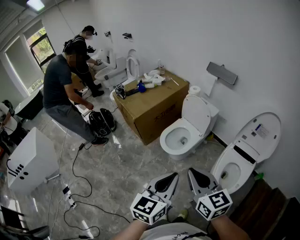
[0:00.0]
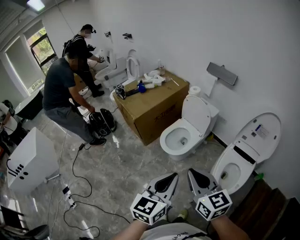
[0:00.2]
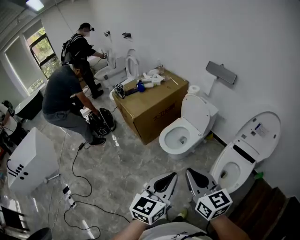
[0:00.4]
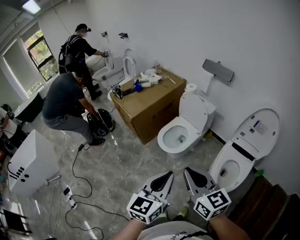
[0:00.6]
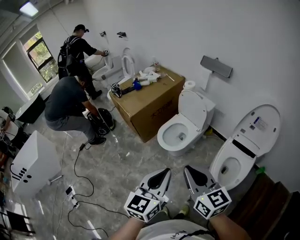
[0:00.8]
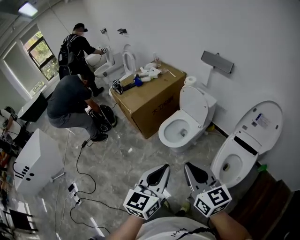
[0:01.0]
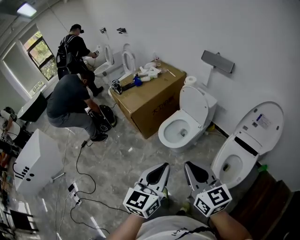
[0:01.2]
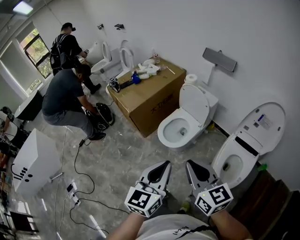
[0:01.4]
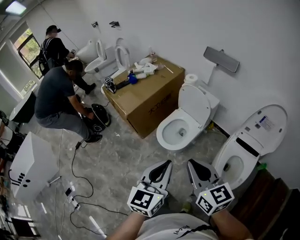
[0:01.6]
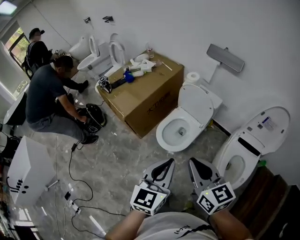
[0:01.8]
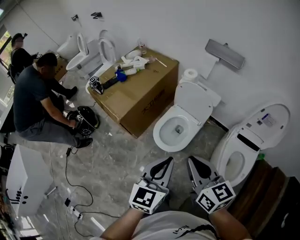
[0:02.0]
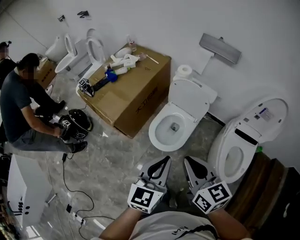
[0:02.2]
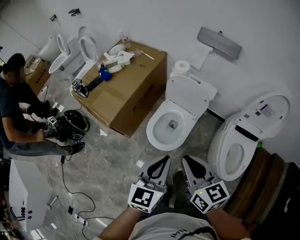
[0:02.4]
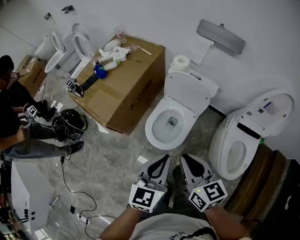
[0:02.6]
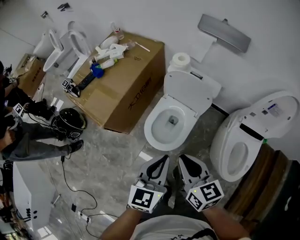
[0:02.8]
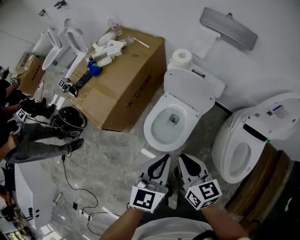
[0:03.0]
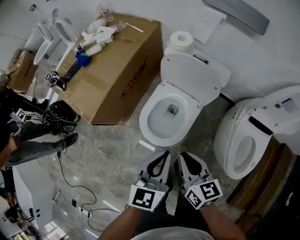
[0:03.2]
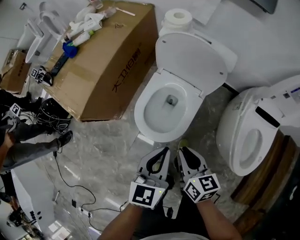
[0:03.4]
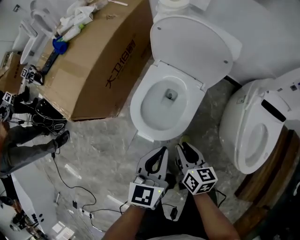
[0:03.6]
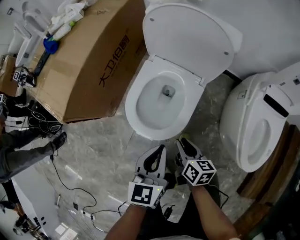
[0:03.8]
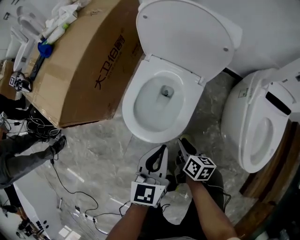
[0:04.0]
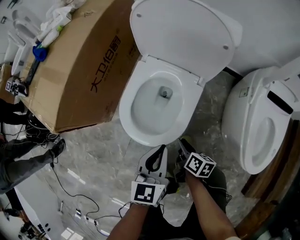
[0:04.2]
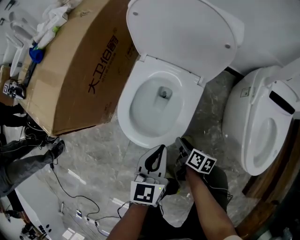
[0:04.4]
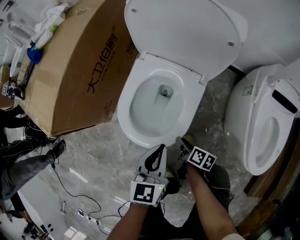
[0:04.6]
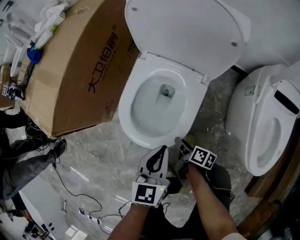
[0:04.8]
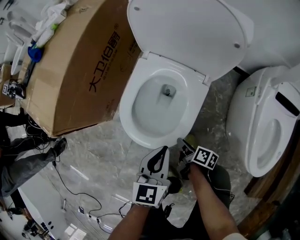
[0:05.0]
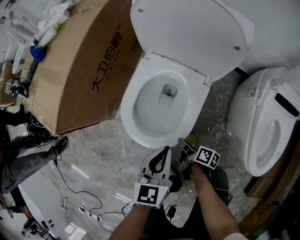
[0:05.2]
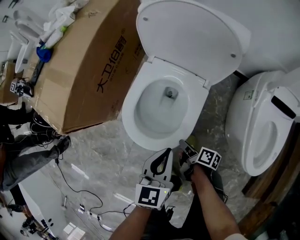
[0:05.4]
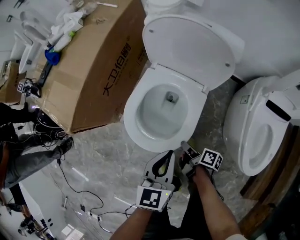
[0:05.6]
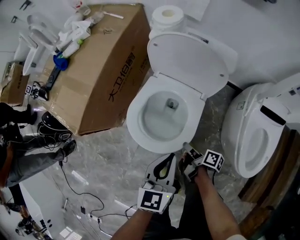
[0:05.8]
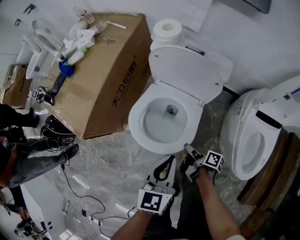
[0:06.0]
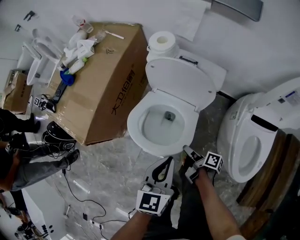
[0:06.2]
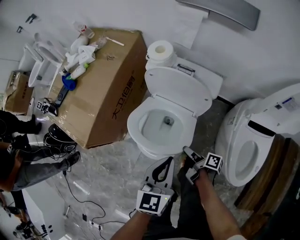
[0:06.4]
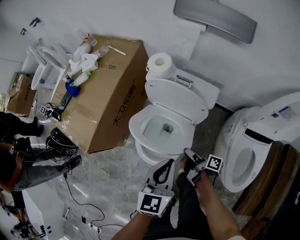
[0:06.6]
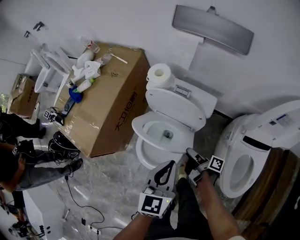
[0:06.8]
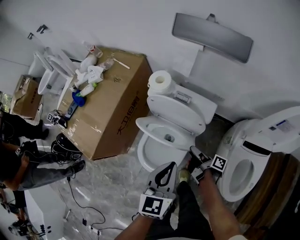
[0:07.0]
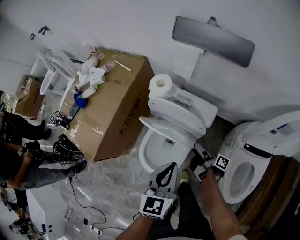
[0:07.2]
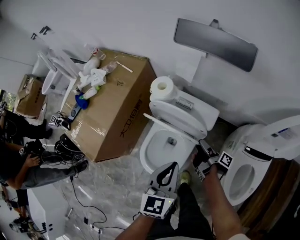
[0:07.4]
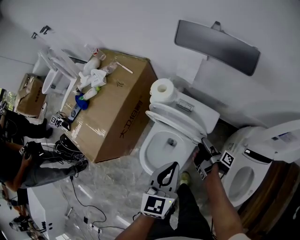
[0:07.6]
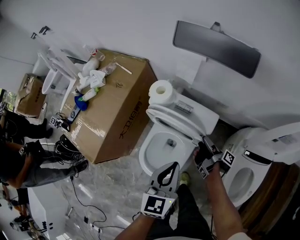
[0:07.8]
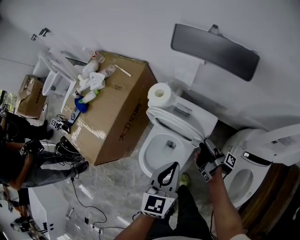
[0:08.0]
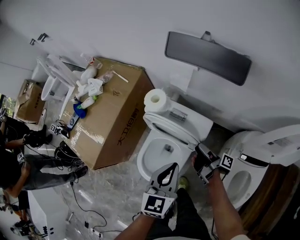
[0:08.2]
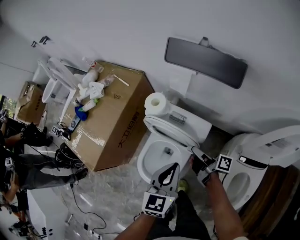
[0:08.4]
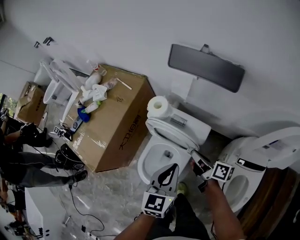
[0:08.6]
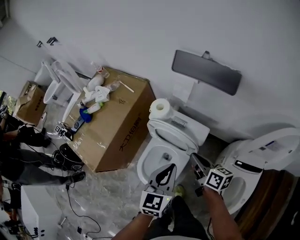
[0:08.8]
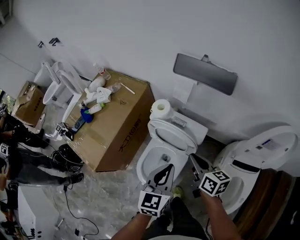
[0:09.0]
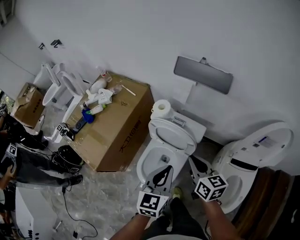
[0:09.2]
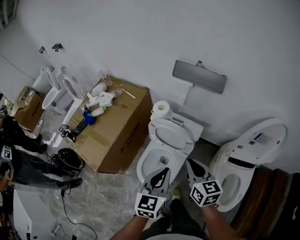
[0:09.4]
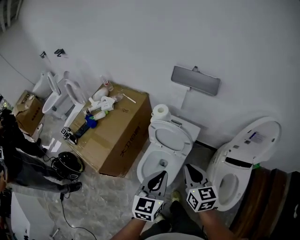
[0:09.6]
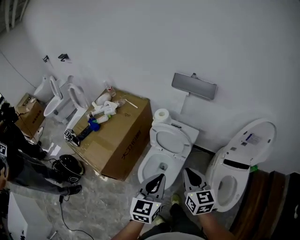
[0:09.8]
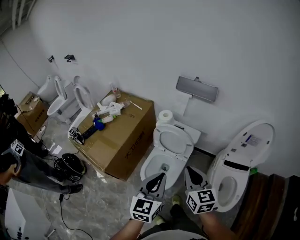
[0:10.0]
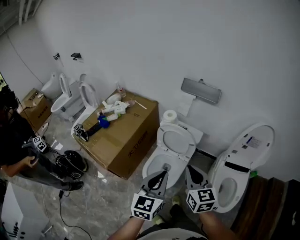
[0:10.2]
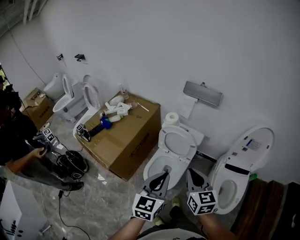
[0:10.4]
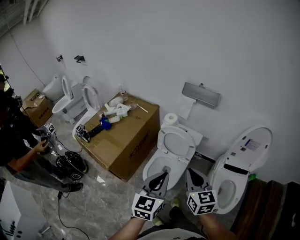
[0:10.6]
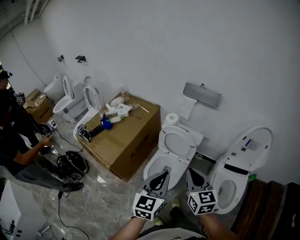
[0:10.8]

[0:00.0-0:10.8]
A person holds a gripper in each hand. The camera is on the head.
0:00.0 to 0:01.6: The grippers both shift forward by some 10 cm.
0:01.6 to 0:03.0: Both grippers travel together forward and downward, roughly 35 cm. The right gripper changes its angle by approximately 20 degrees.
0:03.0 to 0:04.6: Both grippers move downward, some 50 cm. The right gripper rotates around the line of its fingers by some 60 degrees, clockwise from behind, and opens its fingers.
0:04.6 to 0:06.2: The grippers both shift upward by some 20 cm. The right gripper rotates approximately 20 degrees.
0:06.2 to 0:07.8: The right gripper goes roughly 30 cm forward, to the right and upward, changes its angle by approximately 30 degrees, and opens; the left gripper travels forward, upward and to the right by about 20 cm.
0:07.8 to 0:09.2: The left gripper moves upward and backward, some 10 cm, while the right gripper moves upward, approximately 25 cm, rolls counterclockwise, seen from behind, by about 90 degrees, and closes.
0:09.2 to 0:10.8: The grippers both shift backward and upward by about 25 cm. The right gripper rotates about 20 degrees.

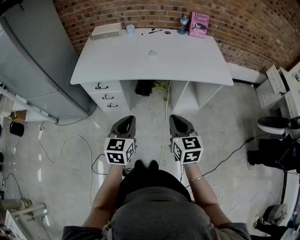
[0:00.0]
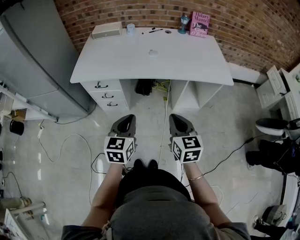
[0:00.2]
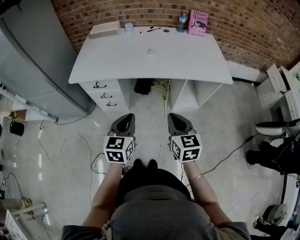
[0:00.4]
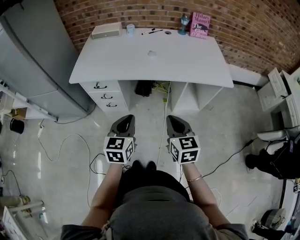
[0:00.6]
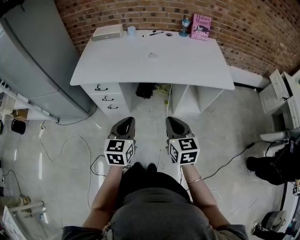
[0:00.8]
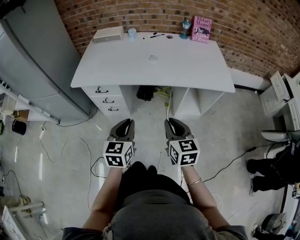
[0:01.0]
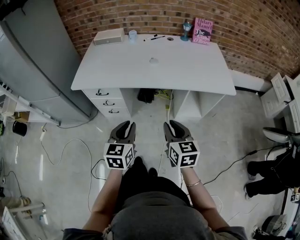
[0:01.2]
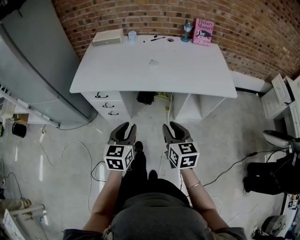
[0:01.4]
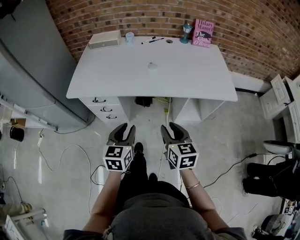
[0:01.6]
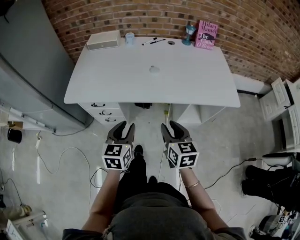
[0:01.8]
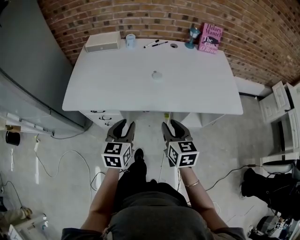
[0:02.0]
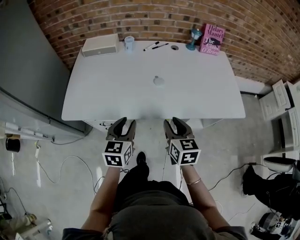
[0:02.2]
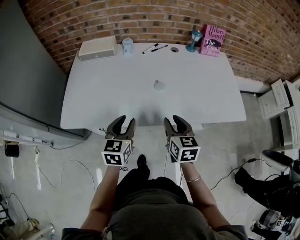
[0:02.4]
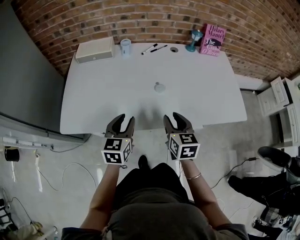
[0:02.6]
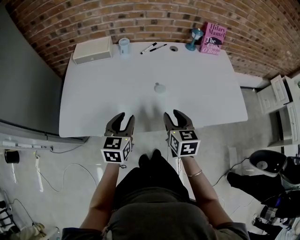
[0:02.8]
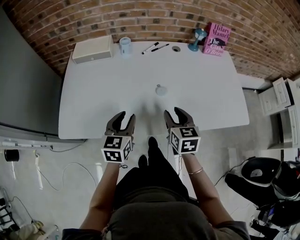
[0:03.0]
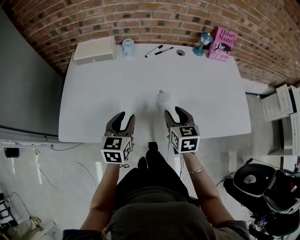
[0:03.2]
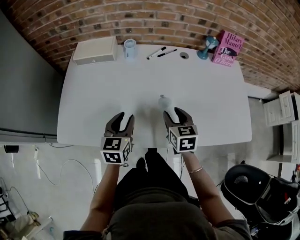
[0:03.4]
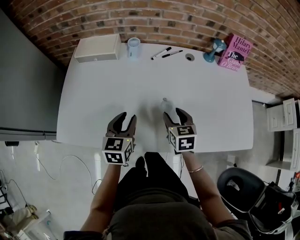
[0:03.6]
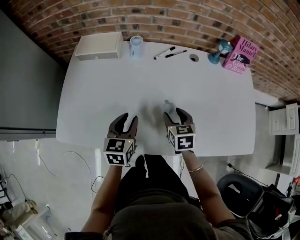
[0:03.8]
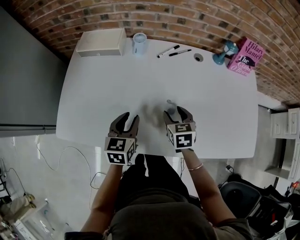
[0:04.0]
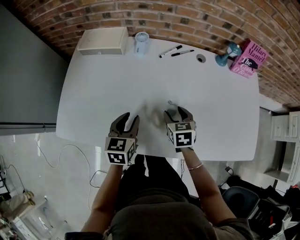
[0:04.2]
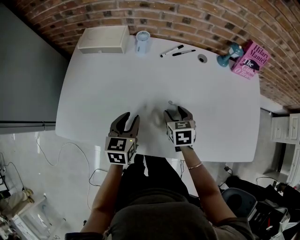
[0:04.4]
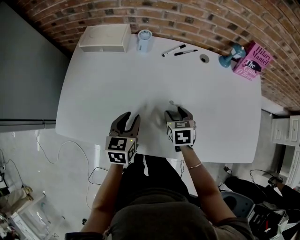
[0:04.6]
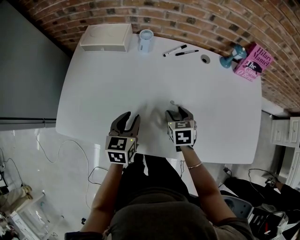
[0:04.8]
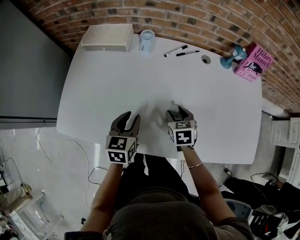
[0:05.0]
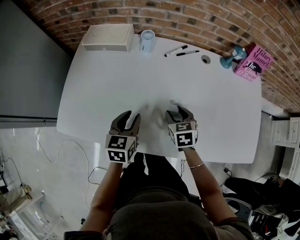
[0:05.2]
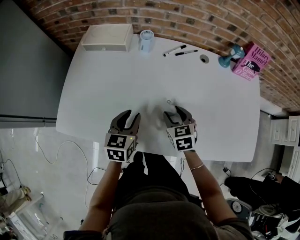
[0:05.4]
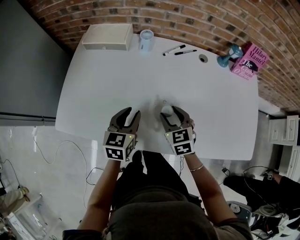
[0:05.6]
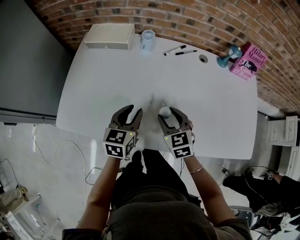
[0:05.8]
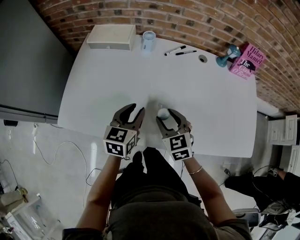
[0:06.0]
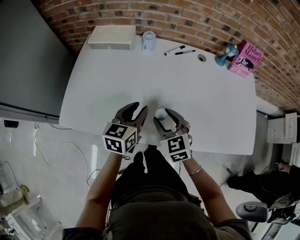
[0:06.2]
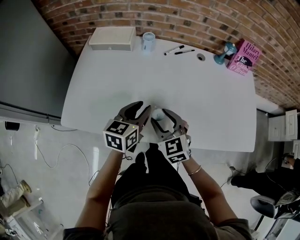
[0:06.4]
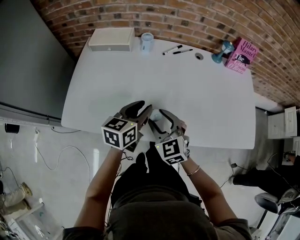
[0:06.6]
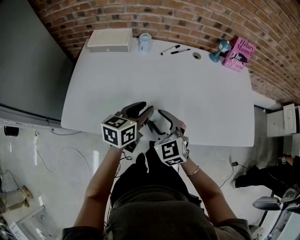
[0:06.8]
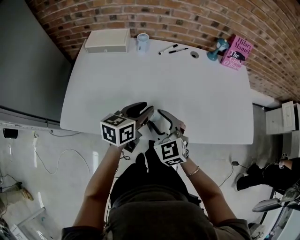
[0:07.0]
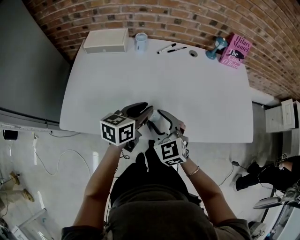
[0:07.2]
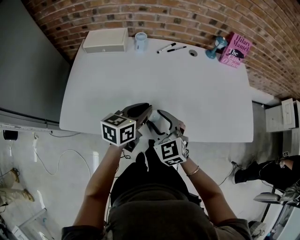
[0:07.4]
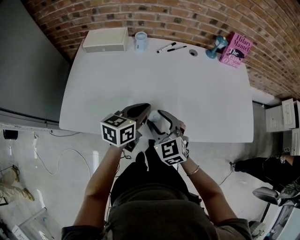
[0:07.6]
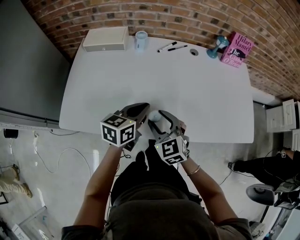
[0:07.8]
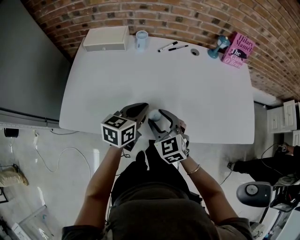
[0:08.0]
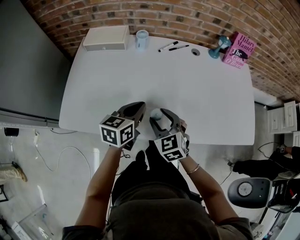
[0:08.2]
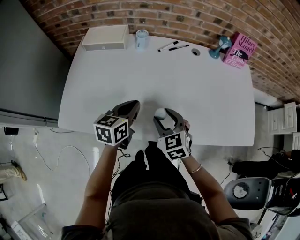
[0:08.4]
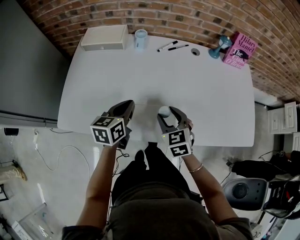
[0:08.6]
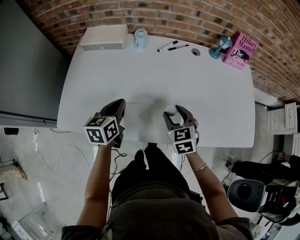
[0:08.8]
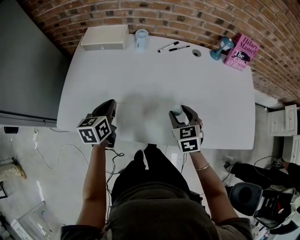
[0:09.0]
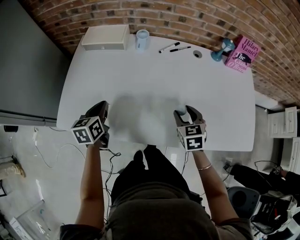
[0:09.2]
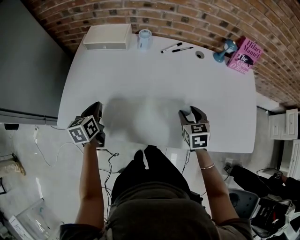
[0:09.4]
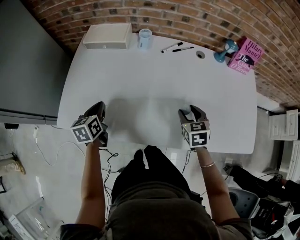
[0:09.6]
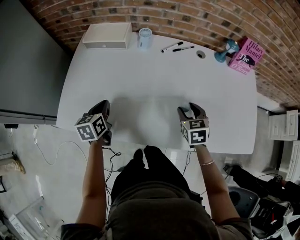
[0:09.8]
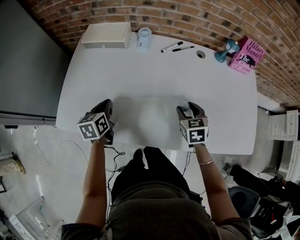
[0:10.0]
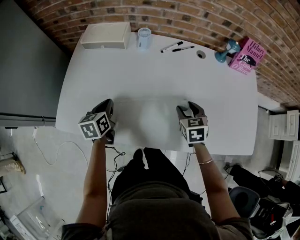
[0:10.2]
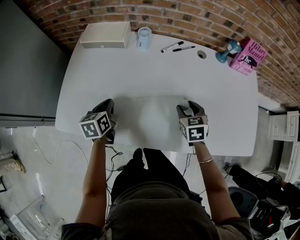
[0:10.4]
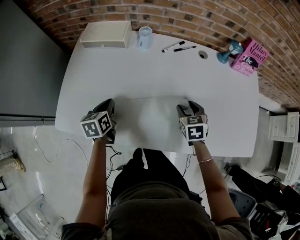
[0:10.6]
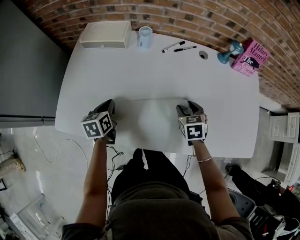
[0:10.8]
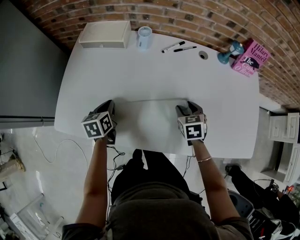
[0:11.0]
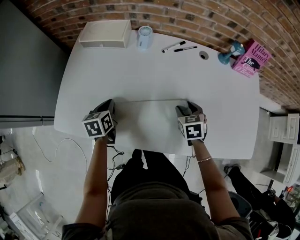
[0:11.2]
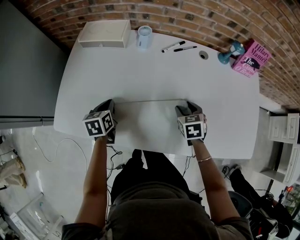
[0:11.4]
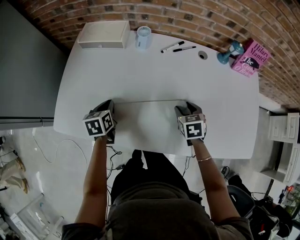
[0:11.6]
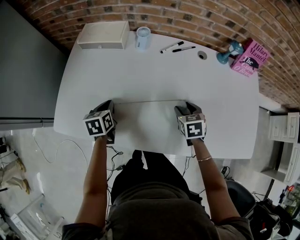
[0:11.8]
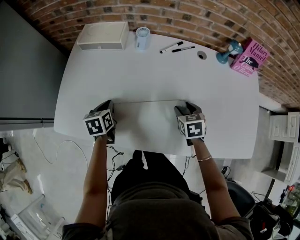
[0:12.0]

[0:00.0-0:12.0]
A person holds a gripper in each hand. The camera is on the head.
0:00.0 to 0:01.6: The grippers both shift forward by approximately 10 cm. The left gripper opens its fingers. The right gripper opens its fingers.
0:01.6 to 0:03.0: The two grippers go approximately 30 cm forward.
0:03.0 to 0:04.4: The left gripper shifts some 10 cm forward; the right gripper is displaced forward and downward by roughly 15 cm, and turns by roughly 20 degrees.
0:04.4 to 0:06.0: The right gripper shifts some 10 cm to the left, upward and backward, and turns by some 30 degrees.
0:06.0 to 0:07.6: The left gripper changes place by roughly 5 cm, rotates about 20 degrees, and closes. The right gripper heads backward, covering approximately 5 cm.
0:07.6 to 0:09.0: The right gripper shifts some 15 cm to the right and forward, and rotates roughly 20 degrees. Meanwhile the left gripper heads to the left, covering approximately 15 cm, and swivels some 30 degrees.
0:09.0 to 0:10.4: The right gripper heads forward, covering approximately 5 cm. Meanwhile the left gripper is displaced downward by approximately 5 cm, and travels to the left and back again, about 10 cm each way.
0:10.4 to 0:12.0: There are only small adjustments of the grippers.

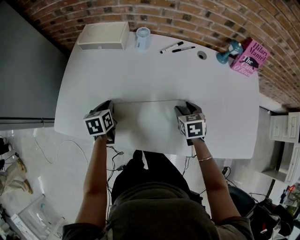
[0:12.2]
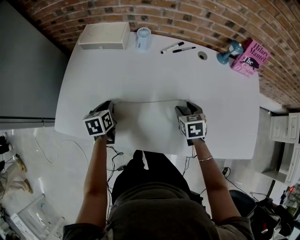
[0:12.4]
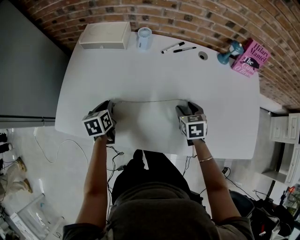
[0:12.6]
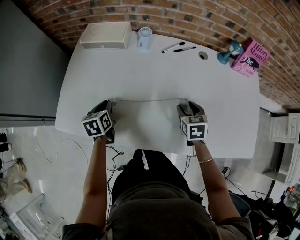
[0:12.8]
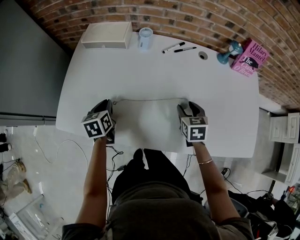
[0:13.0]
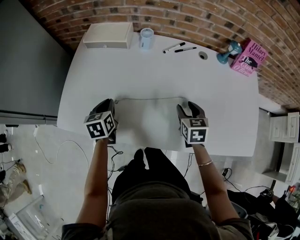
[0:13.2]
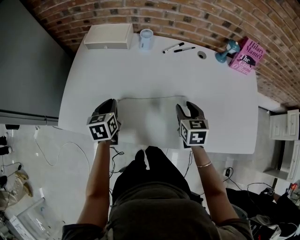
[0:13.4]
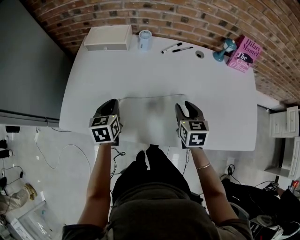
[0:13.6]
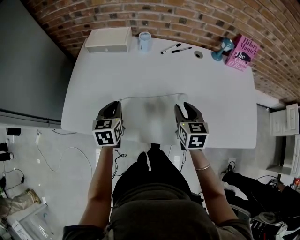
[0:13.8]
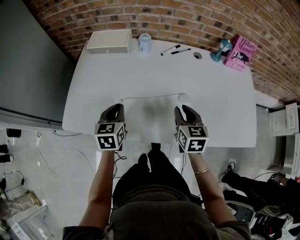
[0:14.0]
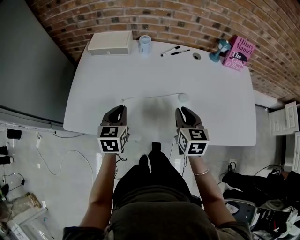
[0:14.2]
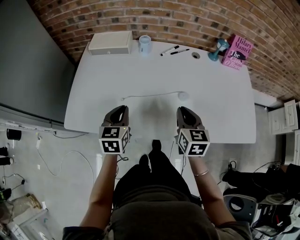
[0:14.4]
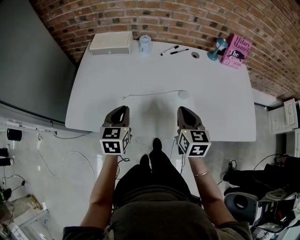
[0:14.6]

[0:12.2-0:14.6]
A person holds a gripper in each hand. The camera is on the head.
0:12.2 to 0:13.4: The right gripper is displaced upward by roughly 5 cm. Meanwhile the left gripper ends up some 5 cm from where it was.
0:13.4 to 0:14.6: The grippers both shift backward and upward by roughly 10 cm. The right gripper closes its fingers.
